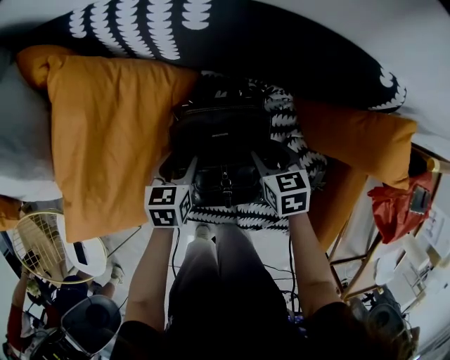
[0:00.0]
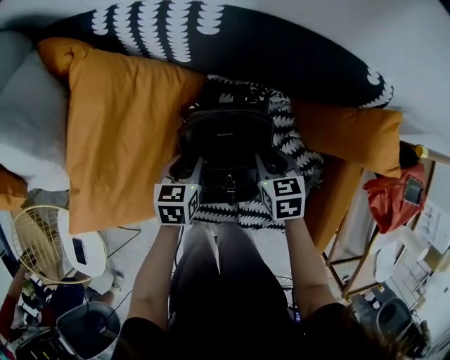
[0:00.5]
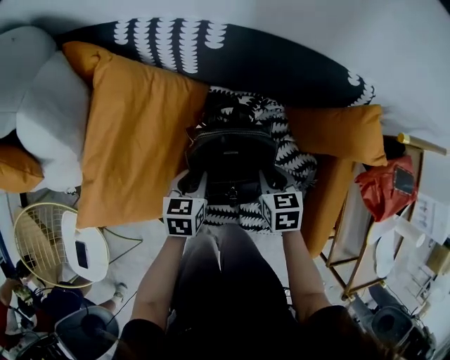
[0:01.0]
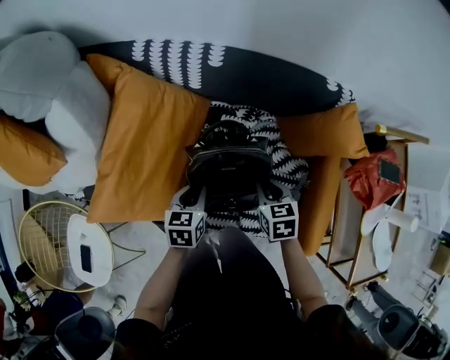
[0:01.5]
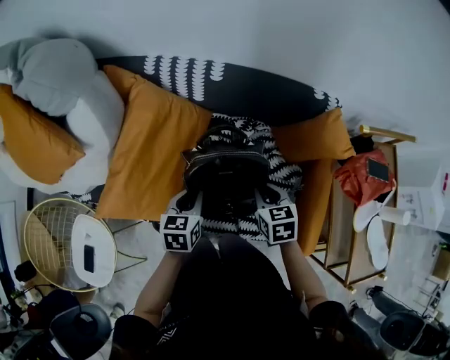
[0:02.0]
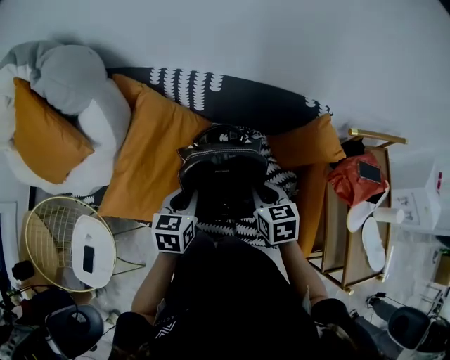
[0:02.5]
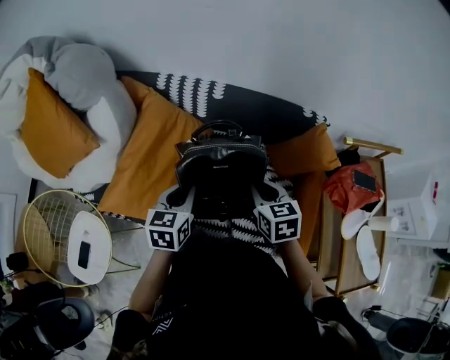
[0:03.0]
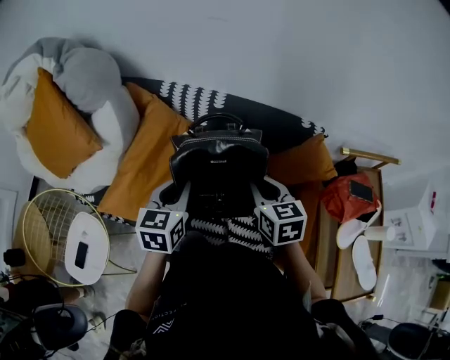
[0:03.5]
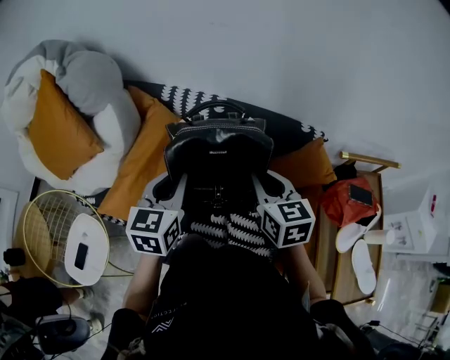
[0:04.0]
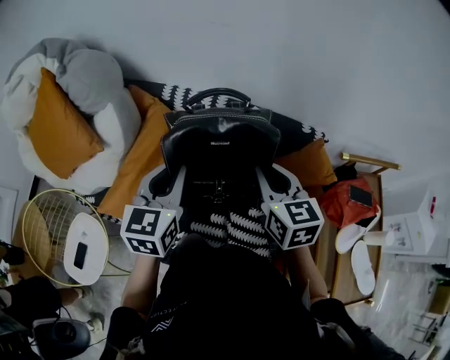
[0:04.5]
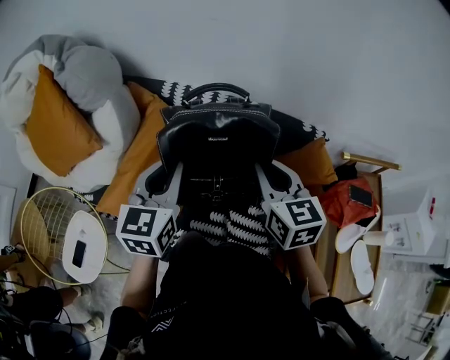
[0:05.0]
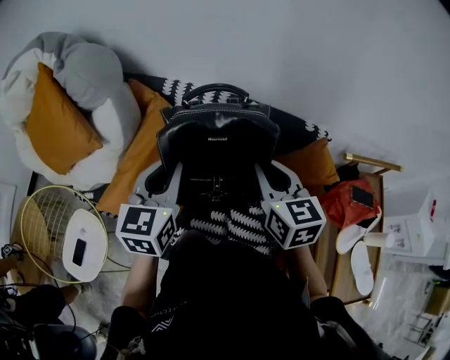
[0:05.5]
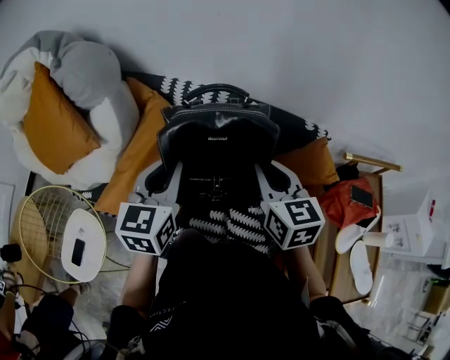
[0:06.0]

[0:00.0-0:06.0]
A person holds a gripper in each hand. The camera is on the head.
0:00.0 to 0:02.0: Both grippers move upward and backward, roughly 25 cm. The right gripper closes; the left gripper closes.
0:02.0 to 0:04.0: Both grippers travel together upward, roughly 20 cm. The right gripper turns by approximately 20 degrees. Meanwhile the left gripper rotates about 20 degrees.
0:04.0 to 0:06.0: The grippers move only a little.

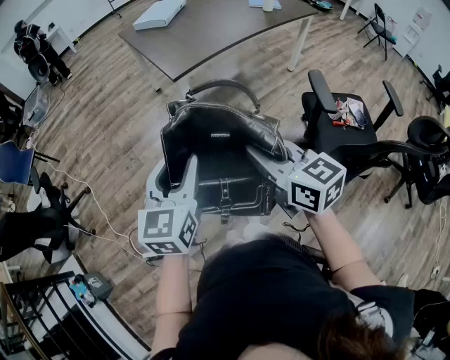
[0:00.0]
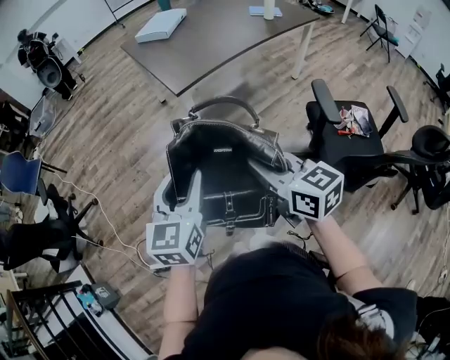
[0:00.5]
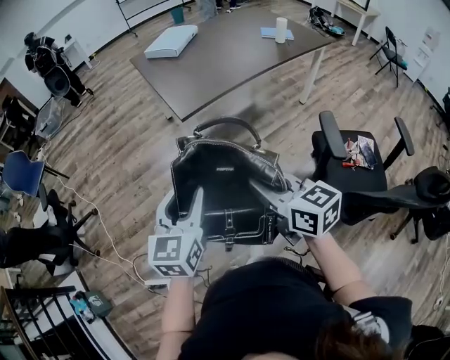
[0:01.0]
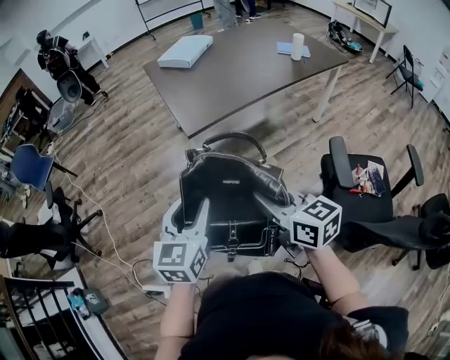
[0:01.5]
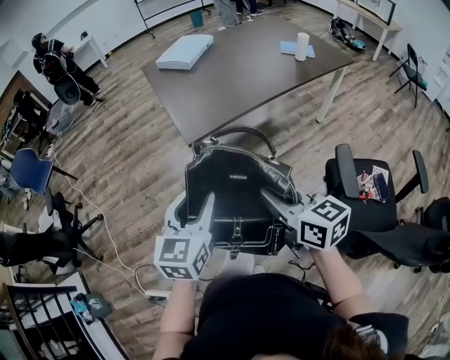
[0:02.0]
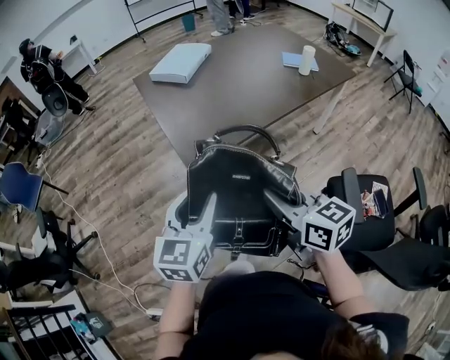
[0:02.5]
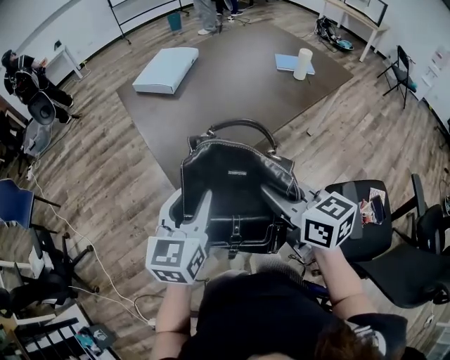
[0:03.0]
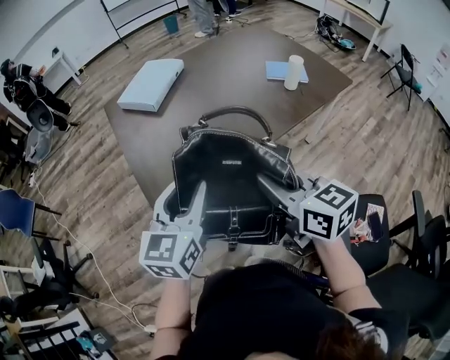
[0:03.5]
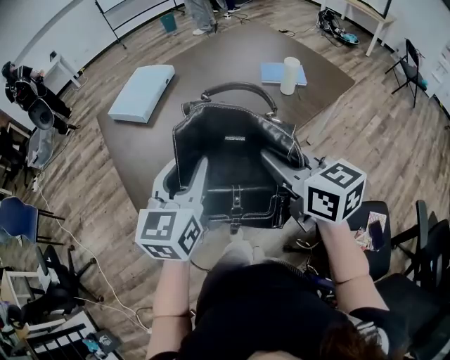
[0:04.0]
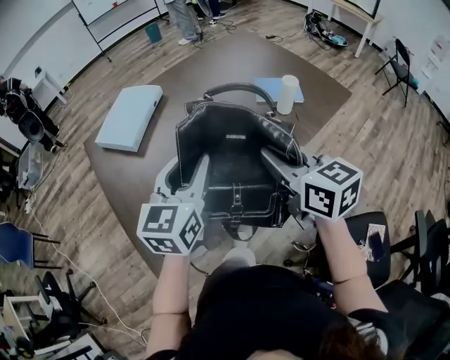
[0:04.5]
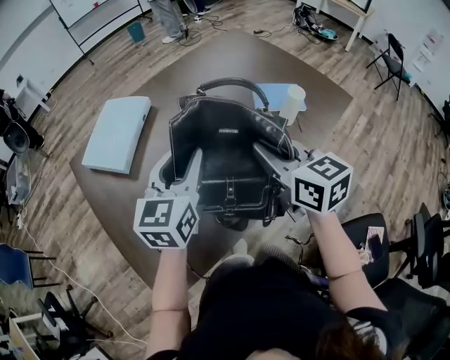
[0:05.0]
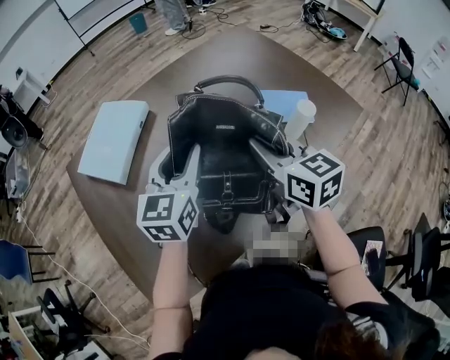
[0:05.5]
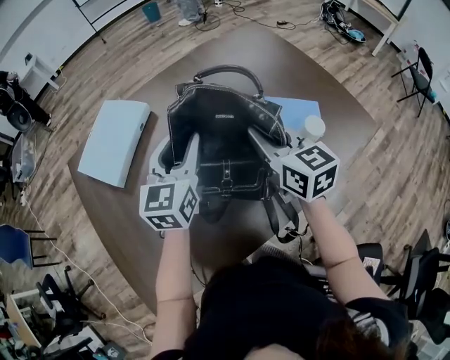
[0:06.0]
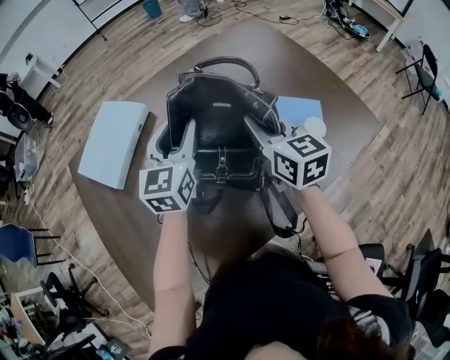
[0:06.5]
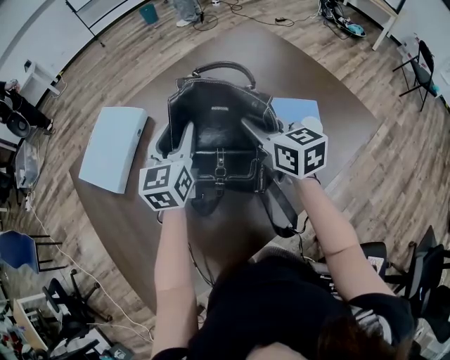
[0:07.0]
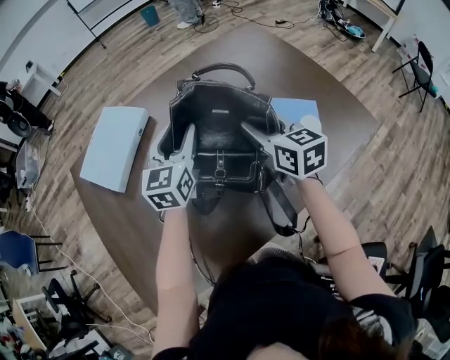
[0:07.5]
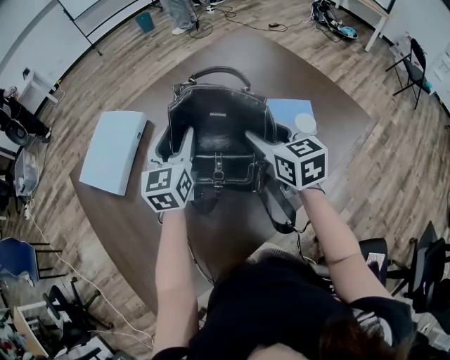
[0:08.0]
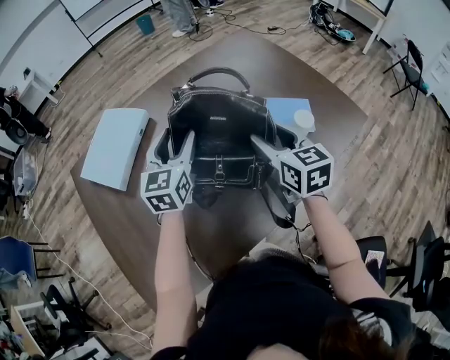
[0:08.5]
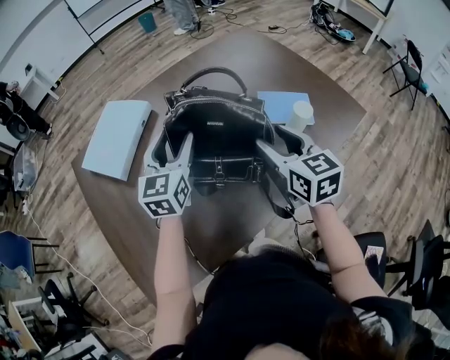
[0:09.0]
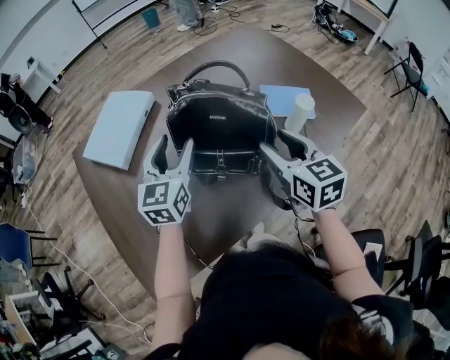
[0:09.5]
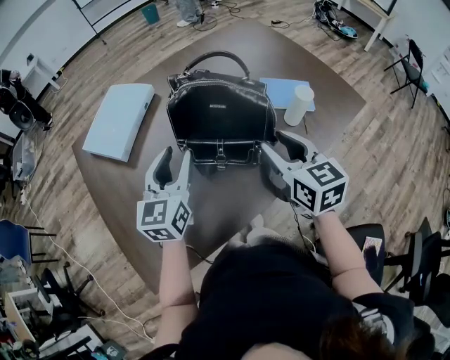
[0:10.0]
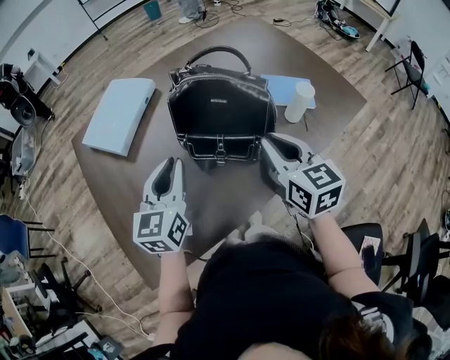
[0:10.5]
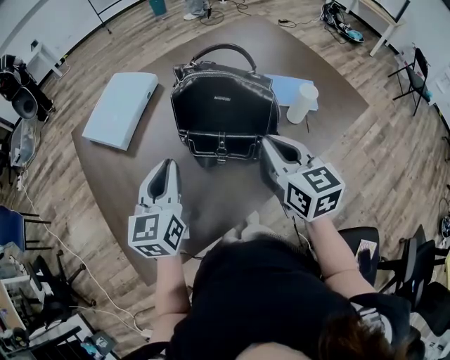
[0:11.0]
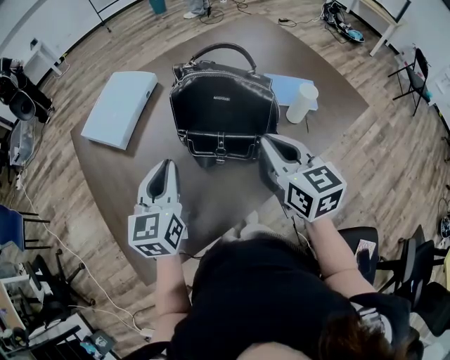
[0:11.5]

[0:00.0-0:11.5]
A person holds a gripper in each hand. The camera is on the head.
0:00.0 to 0:02.0: The two grippers go about 20 cm forward and to the right.
0:02.0 to 0:04.0: Both grippers are carried forward and to the right, approximately 50 cm.
0:04.0 to 0:06.0: The grippers both shift forward by some 40 cm.
0:06.0 to 0:07.5: The left gripper changes place by about 5 cm. The right gripper moves some 5 cm, and opens.
0:07.5 to 0:09.5: The left gripper travels backward and to the left by roughly 15 cm. The right gripper heads backward, covering approximately 15 cm.
0:09.5 to 0:11.5: The right gripper changes place by approximately 5 cm, and closes its fingers. The left gripper heads backward, covering some 10 cm, and closes up.

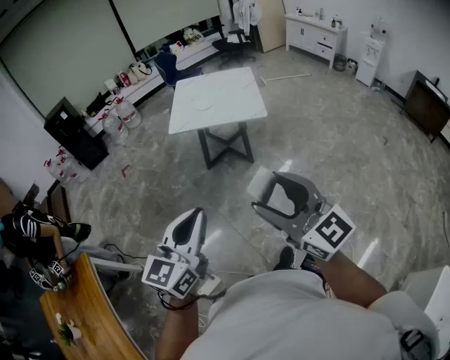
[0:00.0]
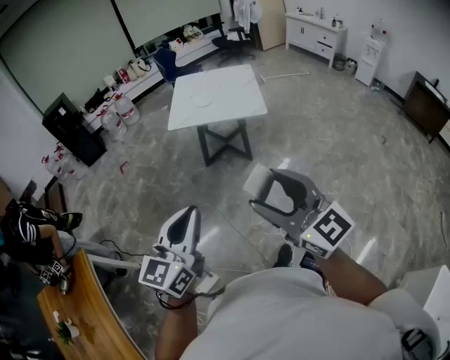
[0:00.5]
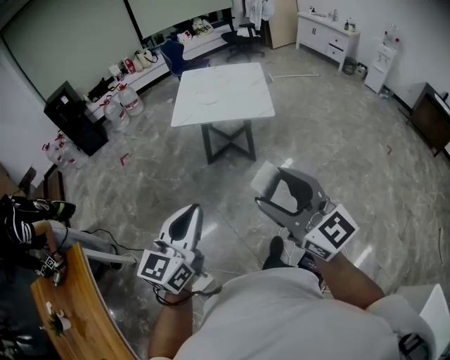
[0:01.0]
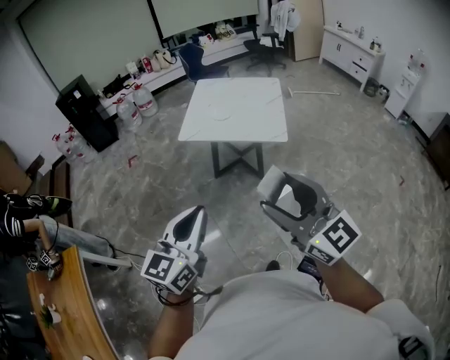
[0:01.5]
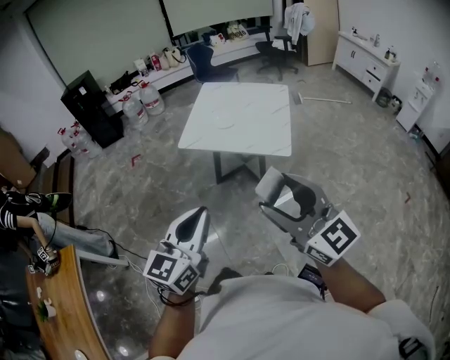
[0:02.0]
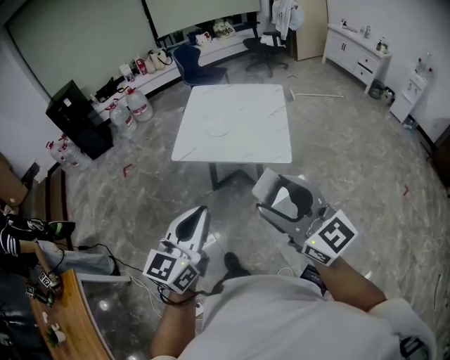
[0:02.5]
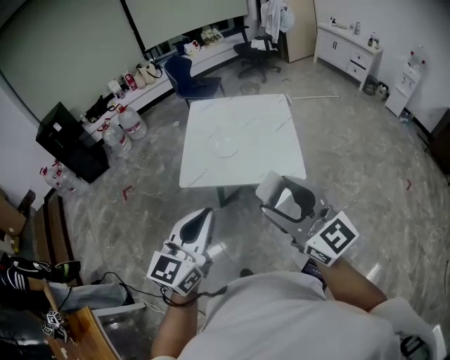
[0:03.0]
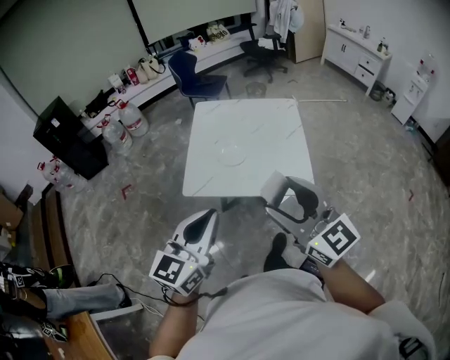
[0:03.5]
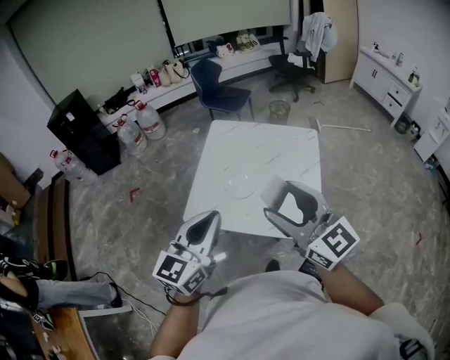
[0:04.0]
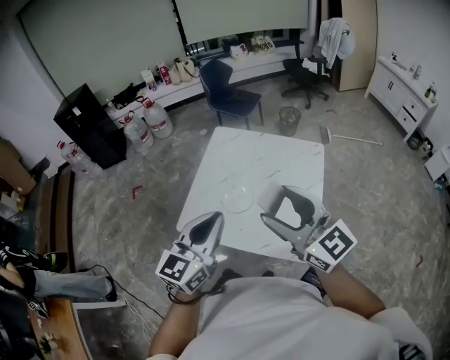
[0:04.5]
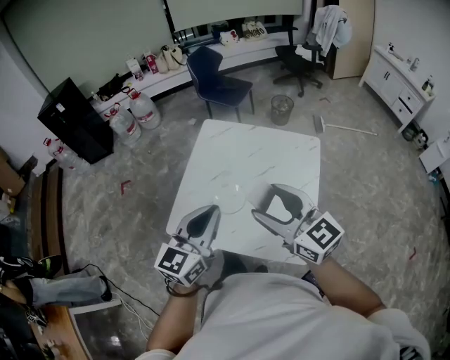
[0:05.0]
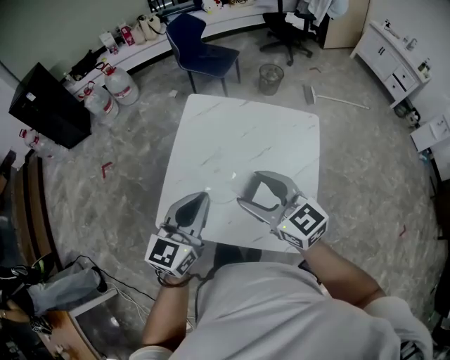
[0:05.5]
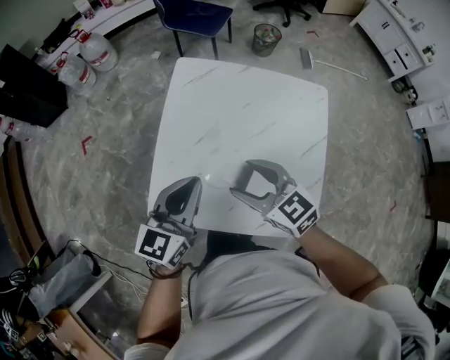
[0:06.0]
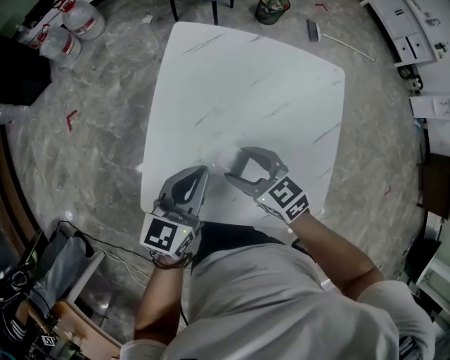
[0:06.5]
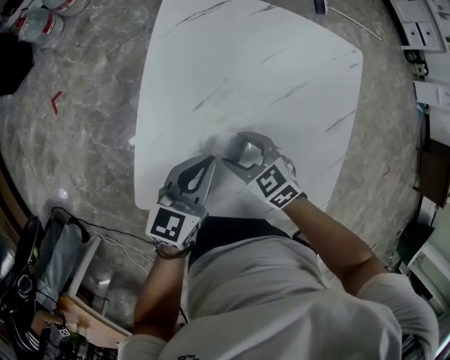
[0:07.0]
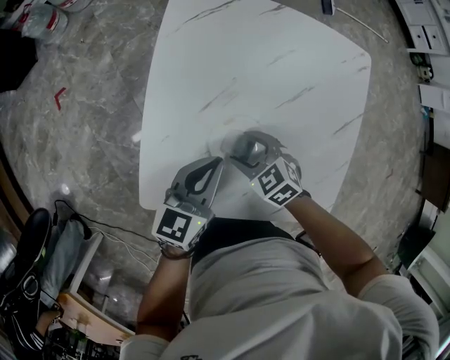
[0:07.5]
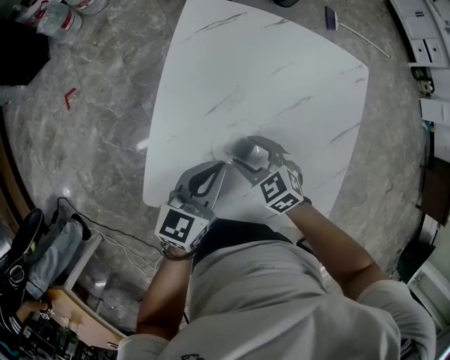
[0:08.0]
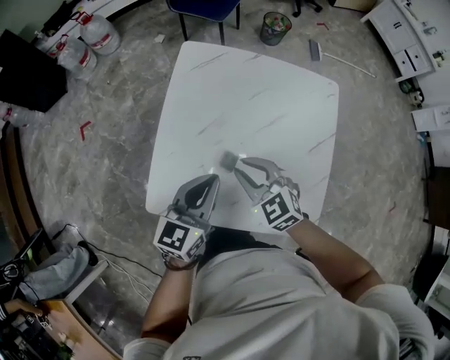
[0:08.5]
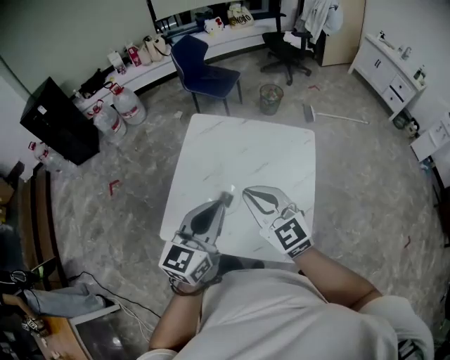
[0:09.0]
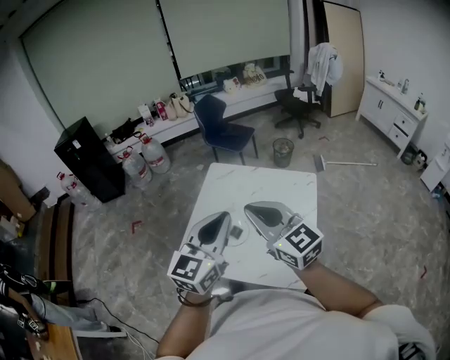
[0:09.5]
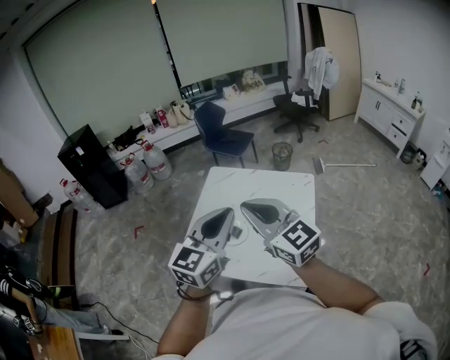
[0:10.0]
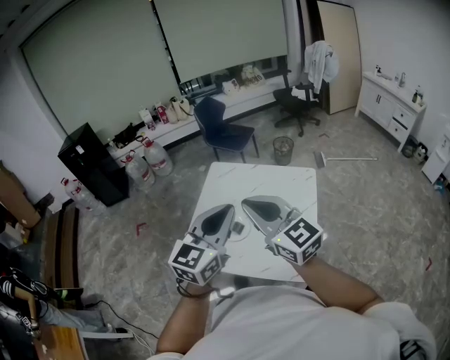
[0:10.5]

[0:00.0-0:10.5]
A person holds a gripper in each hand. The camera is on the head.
0:00.0 to 0:02.0: Both grippers travel together forward and to the right, some 30 cm.
0:02.0 to 0:04.0: The pair of grippers is taken forward, about 50 cm.
0:04.0 to 0:06.5: The left gripper travels forward and downward by some 50 cm, and changes its angle by roughly 20 degrees. Meanwhile the right gripper travels downward and forward by roughly 50 cm, and tilts its fingers approximately 40 degrees downward.
0:06.5 to 0:08.5: The left gripper goes downward and returns, some 10 cm each way, while the right gripper reaches roughly 15 cm downward, then returns, rotates some 20 degrees, and closes.
0:08.5 to 0:10.5: The two grippers go roughly 40 cm upward and backward. The right gripper angles its fingers upward, by approximately 40 degrees. The left gripper swivels approximately 20 degrees.
